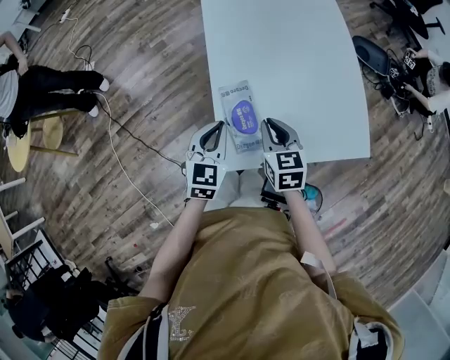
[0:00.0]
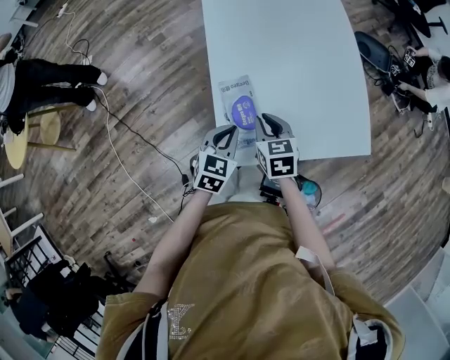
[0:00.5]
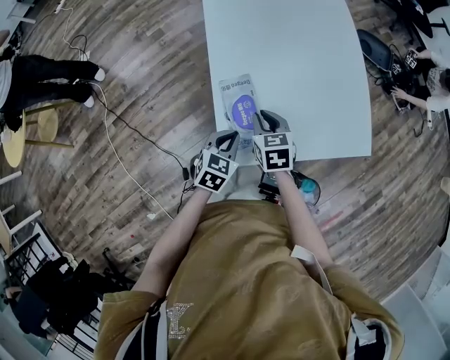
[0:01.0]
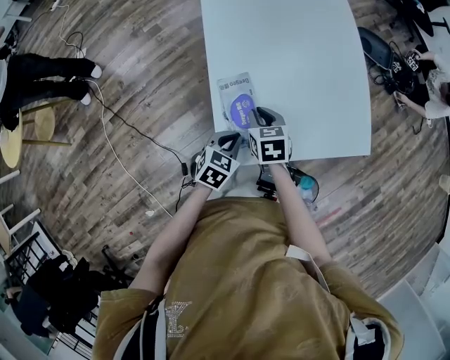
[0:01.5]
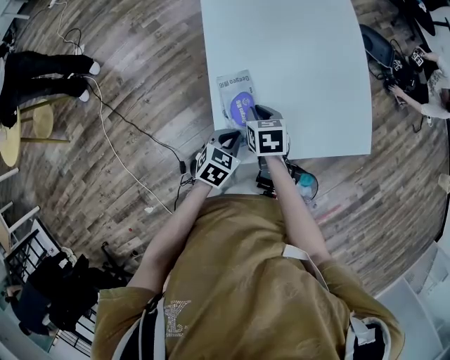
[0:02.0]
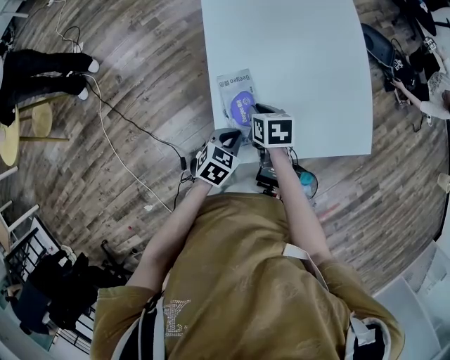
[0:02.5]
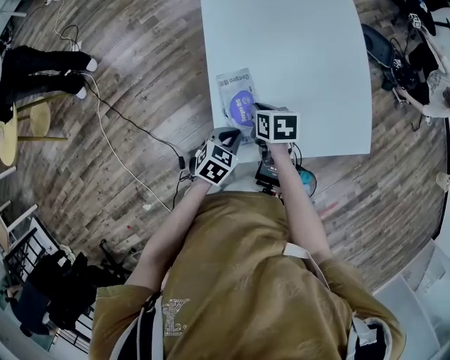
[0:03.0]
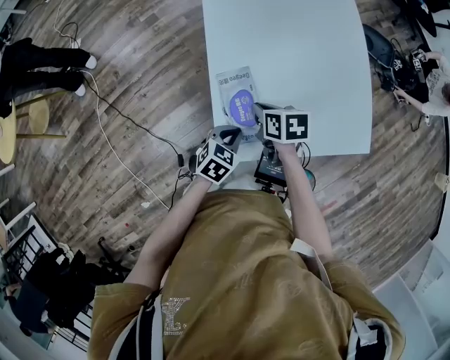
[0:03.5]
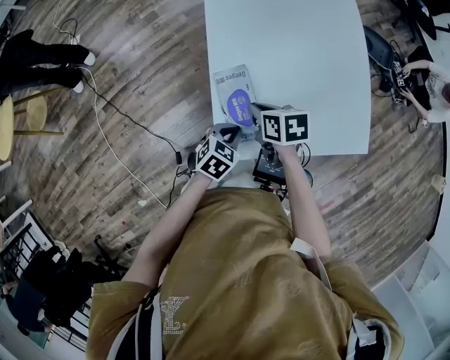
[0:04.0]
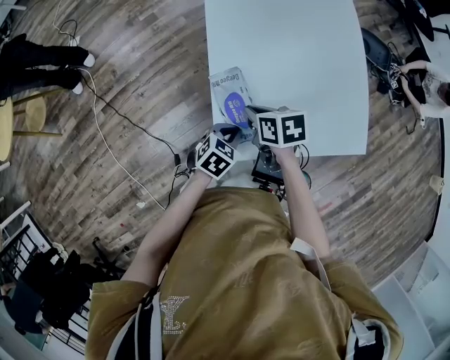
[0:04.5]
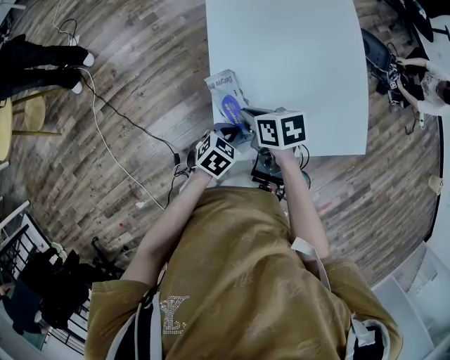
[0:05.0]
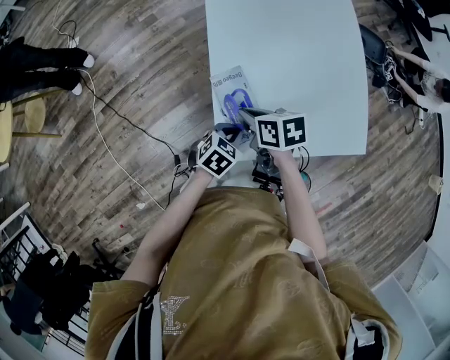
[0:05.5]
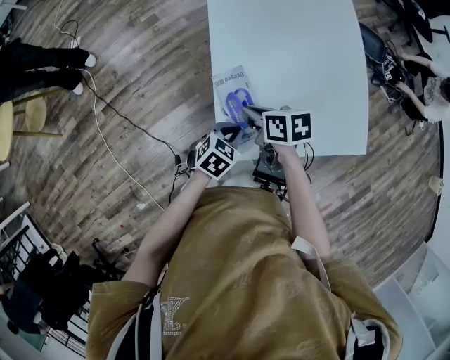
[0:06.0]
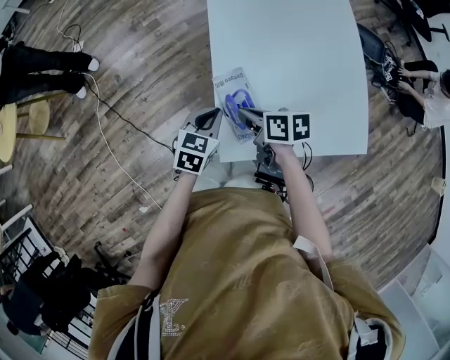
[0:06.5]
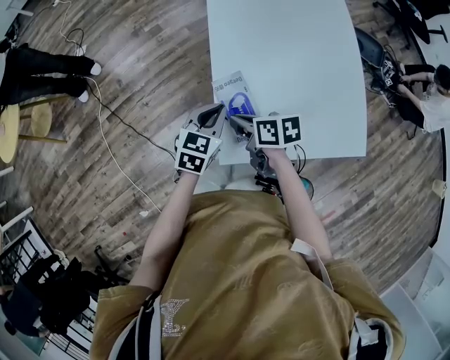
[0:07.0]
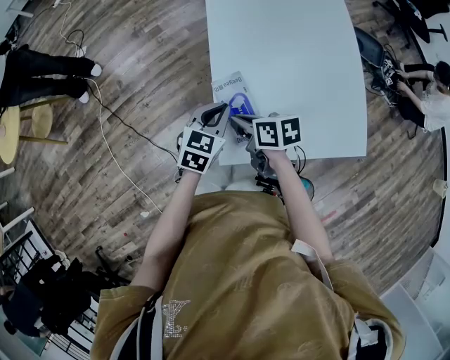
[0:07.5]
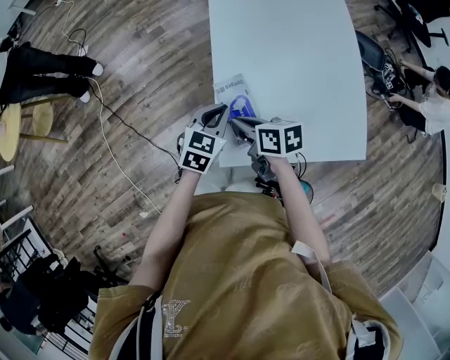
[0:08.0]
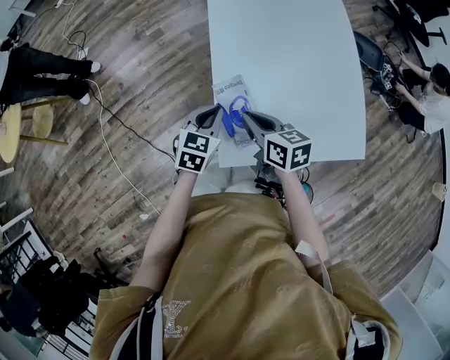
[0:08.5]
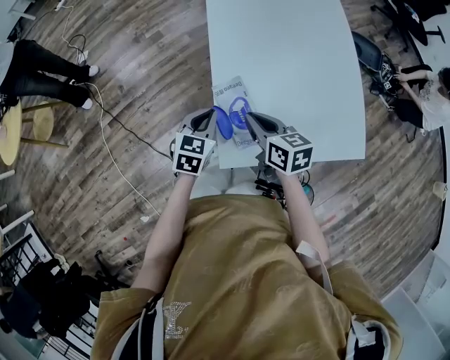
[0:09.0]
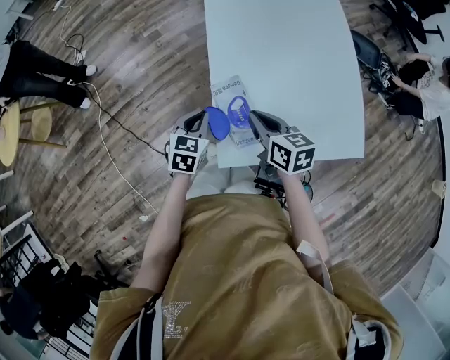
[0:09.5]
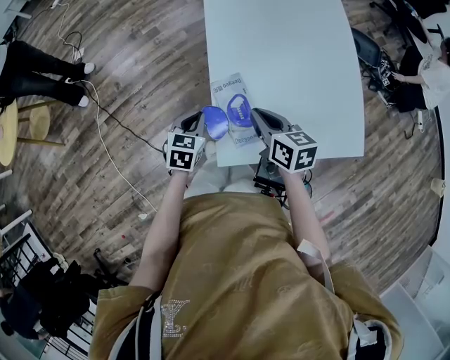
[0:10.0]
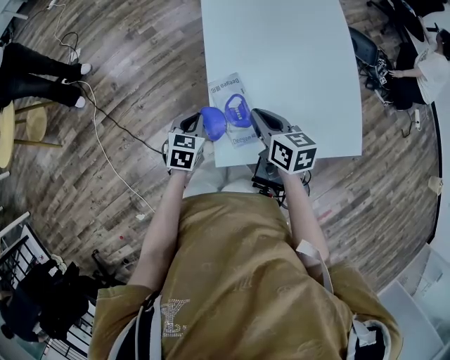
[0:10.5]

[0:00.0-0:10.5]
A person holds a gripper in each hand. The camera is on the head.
0:00.0 to 0:02.0: The left gripper goes approximately 15 cm downward and backward, and changes its angle by some 30 degrees. The right gripper travels downward by approximately 10 cm, and changes its angle by roughly 20 degrees.
0:02.0 to 0:04.0: The grippers stay close to where they were, moving slightly.
0:04.0 to 0:06.5: The left gripper goes roughly 10 cm forward, to the left and upward, and swivels approximately 20 degrees.
0:06.5 to 0:08.5: The right gripper turns by approximately 20 degrees.
0:08.5 to 0:10.5: The left gripper goes about 10 cm downward and to the left.

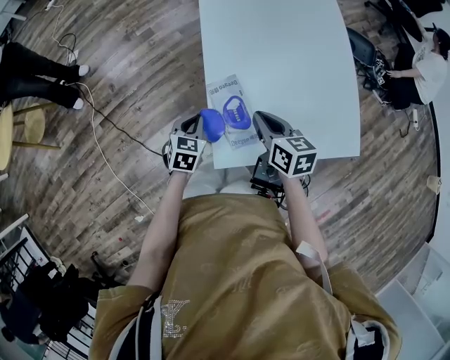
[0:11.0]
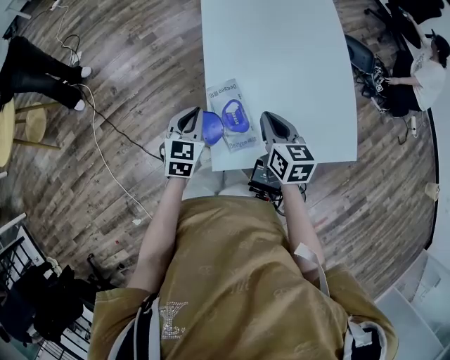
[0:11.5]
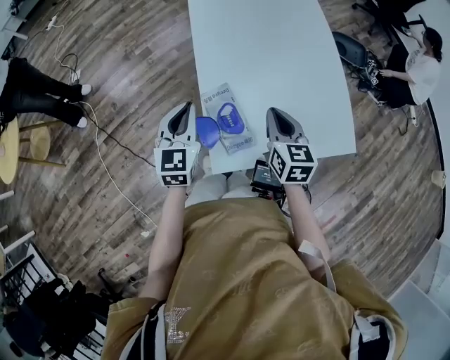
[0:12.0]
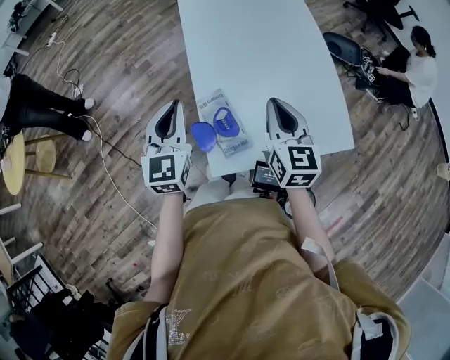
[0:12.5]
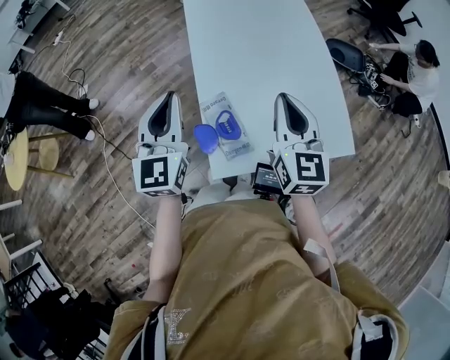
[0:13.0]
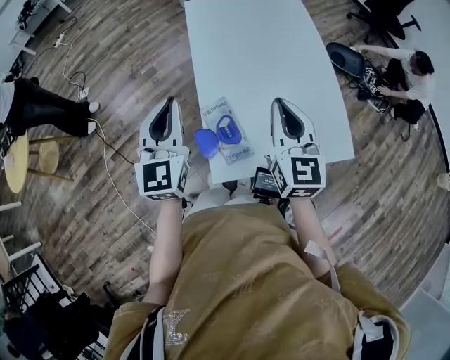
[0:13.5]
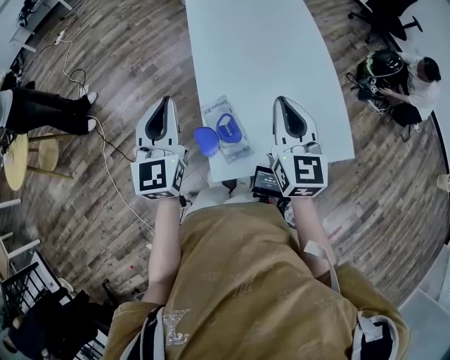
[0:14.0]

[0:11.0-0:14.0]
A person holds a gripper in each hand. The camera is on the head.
0:11.0 to 0:12.5: The right gripper shifts some 15 cm upward and to the right, and swivels approximately 30 degrees; the left gripper travels upward by approximately 25 cm, and tips its fingers upward by about 40 degrees.
0:12.5 to 0:14.0: Both grippers travel together upward, some 5 cm.

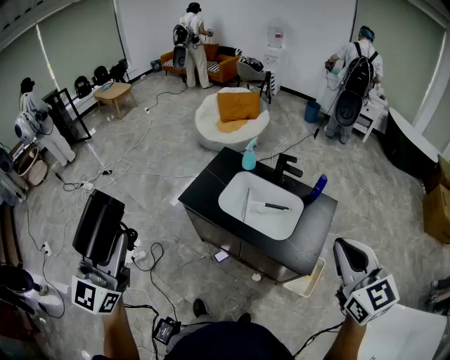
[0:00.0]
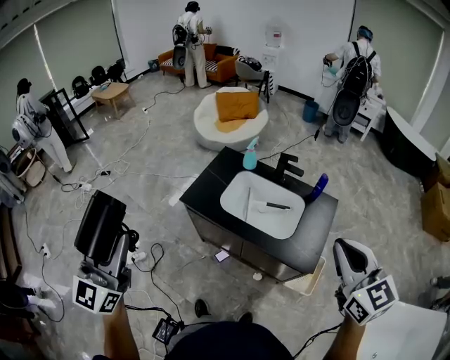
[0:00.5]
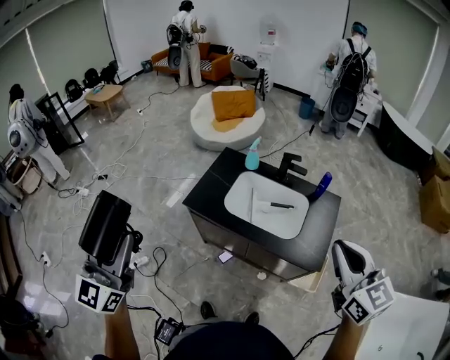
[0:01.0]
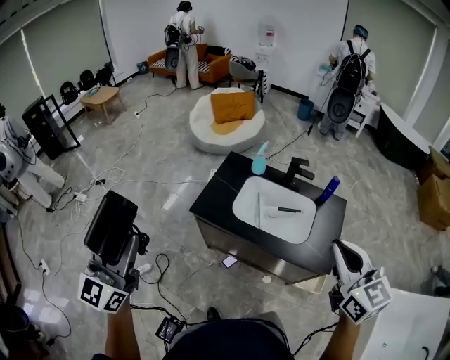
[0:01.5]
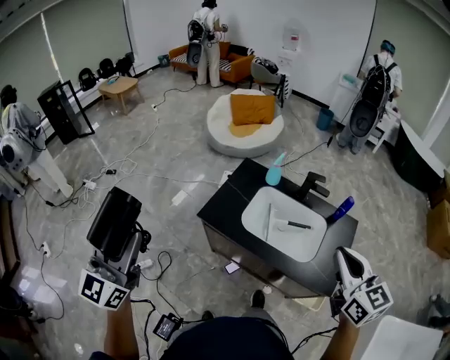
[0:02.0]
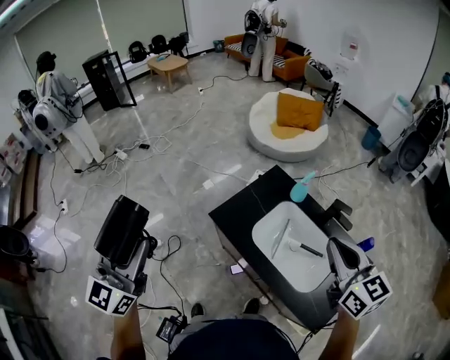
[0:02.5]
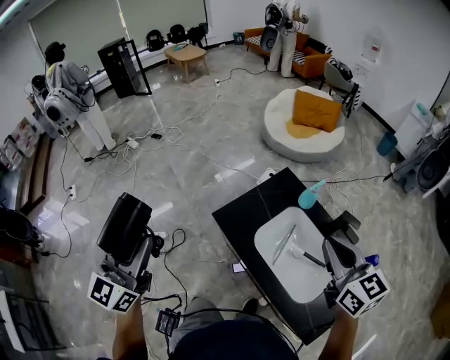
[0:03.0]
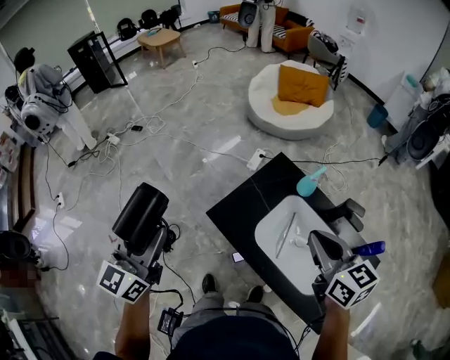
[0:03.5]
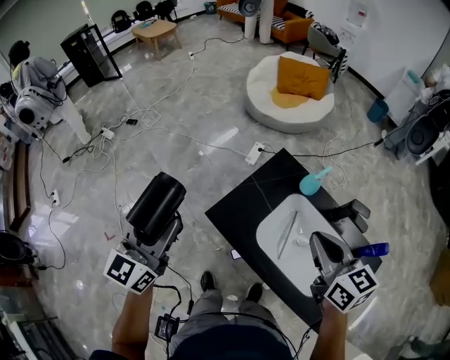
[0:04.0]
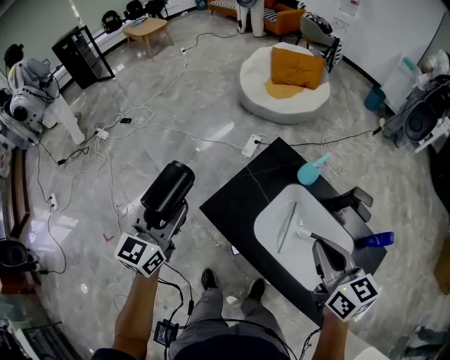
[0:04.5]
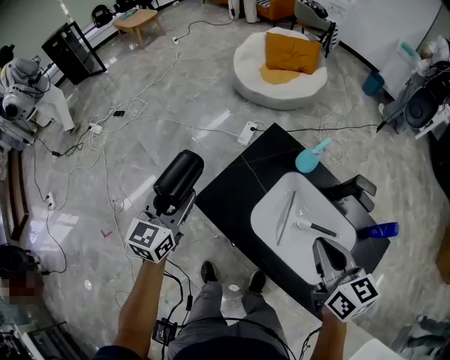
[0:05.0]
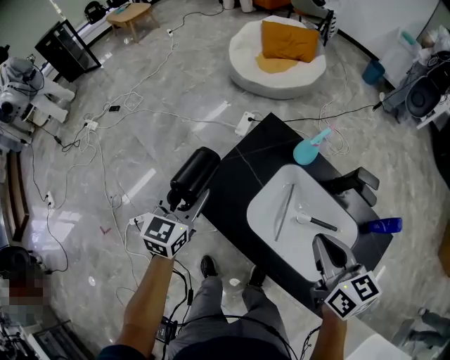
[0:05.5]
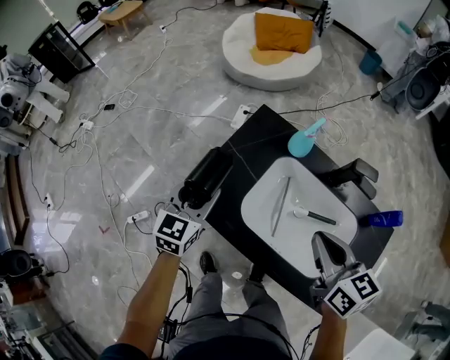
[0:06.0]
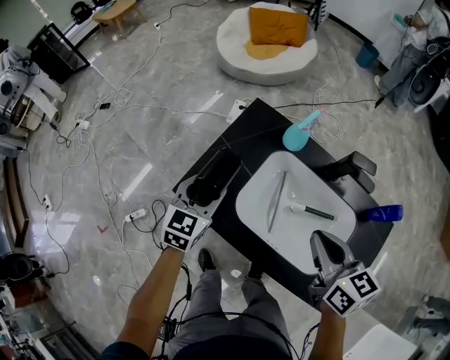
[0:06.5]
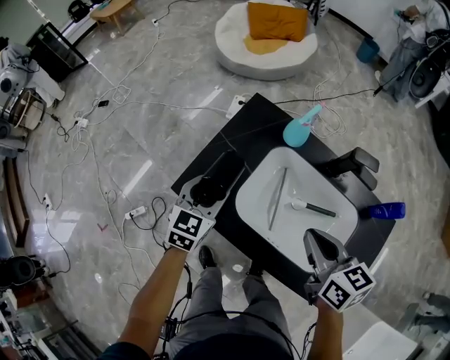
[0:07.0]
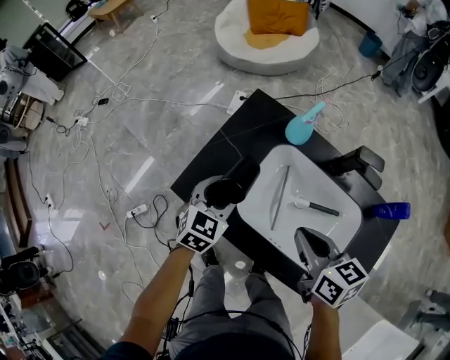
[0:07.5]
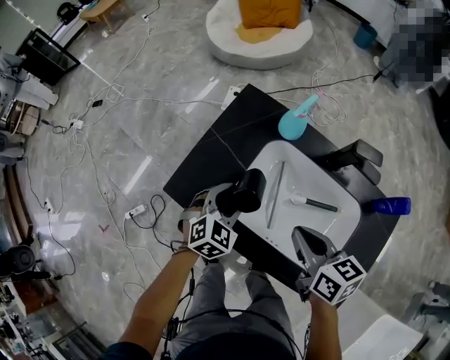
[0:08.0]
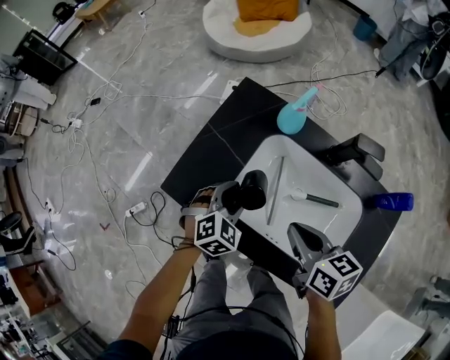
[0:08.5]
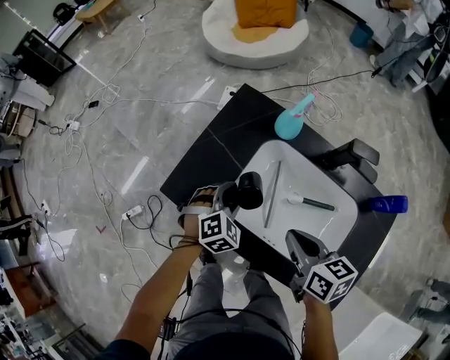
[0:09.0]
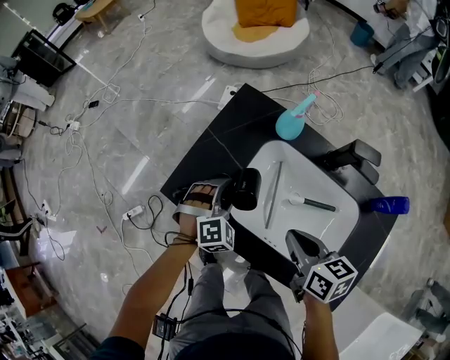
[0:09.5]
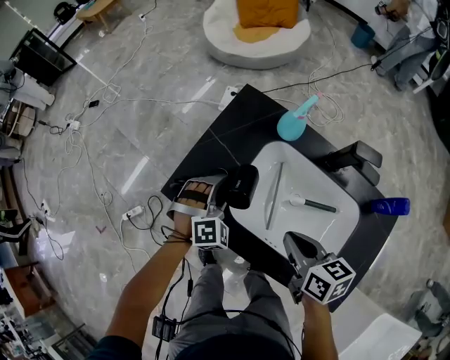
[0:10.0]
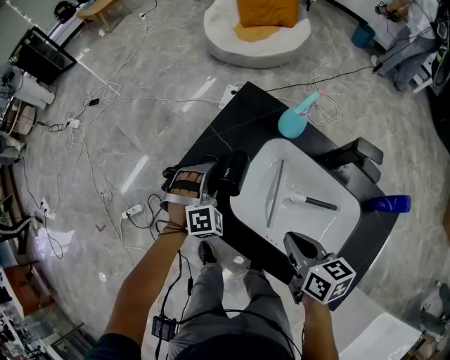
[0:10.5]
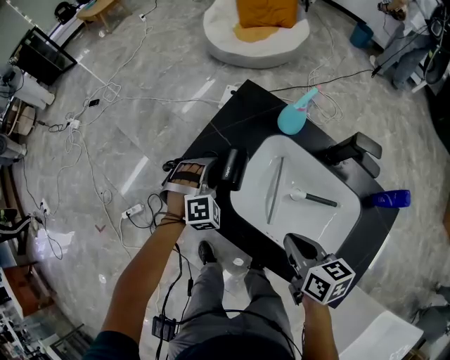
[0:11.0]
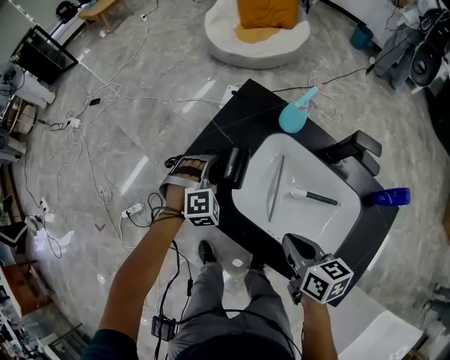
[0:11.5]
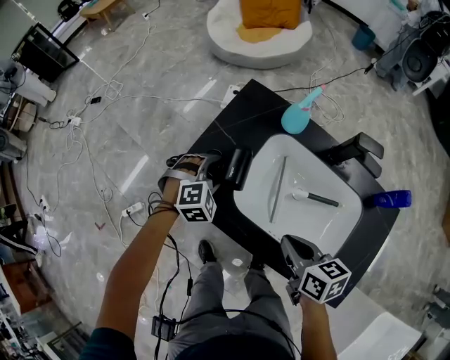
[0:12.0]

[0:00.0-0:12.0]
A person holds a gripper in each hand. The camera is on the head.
0:00.0 to 0:02.0: Both grippers travel together to the left and forward, some 15 cm.
0:02.0 to 0:04.0: The right gripper shifts by approximately 35 cm, and changes its angle by about 30 degrees. The left gripper shifts by approximately 30 cm.
0:04.0 to 0:06.0: The right gripper moves downward and to the right, roughly 15 cm, while the left gripper moves downward and to the right, some 30 cm, and changes its angle by roughly 20 degrees.
0:06.0 to 0:08.0: The right gripper is displaced downward by about 10 cm, while the left gripper is displaced downward and to the right by some 15 cm, and turns by approximately 40 degrees.
0:08.0 to 0:10.0: The left gripper rotates approximately 40 degrees.
0:10.0 to 0:12.0: The grippers make only small movements.

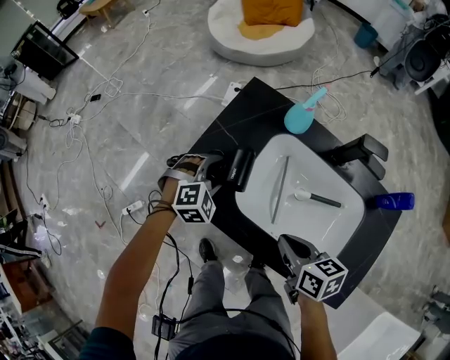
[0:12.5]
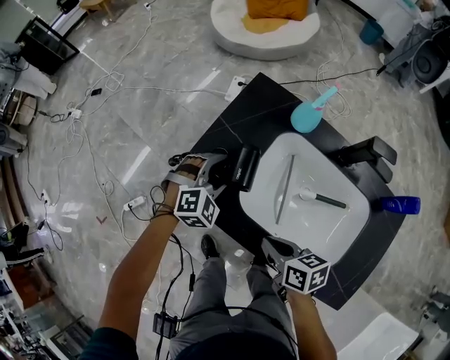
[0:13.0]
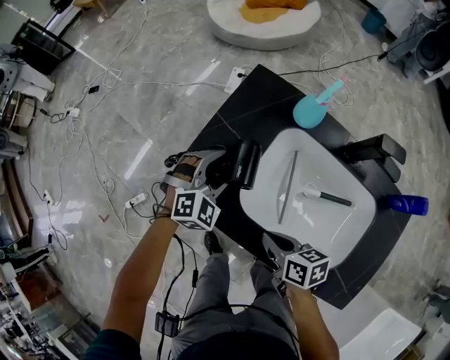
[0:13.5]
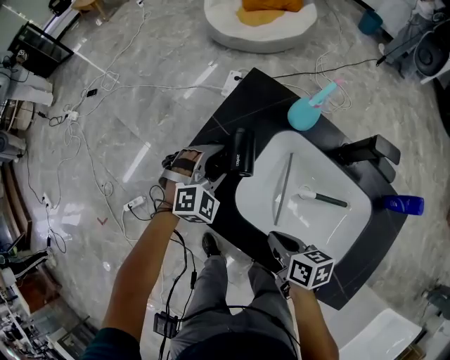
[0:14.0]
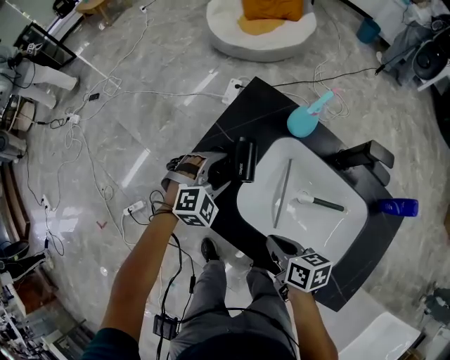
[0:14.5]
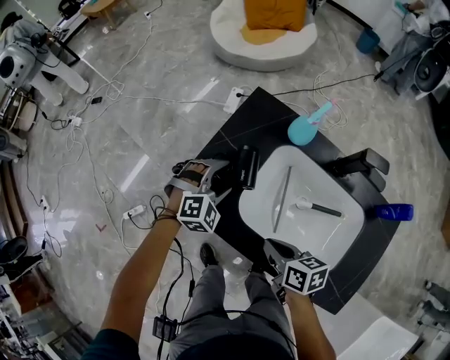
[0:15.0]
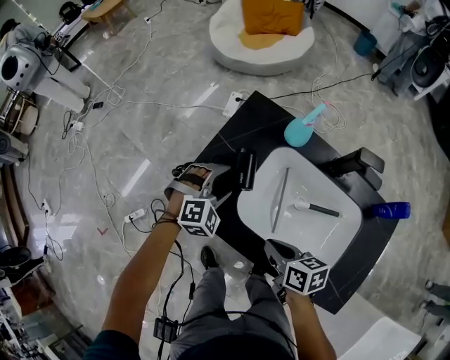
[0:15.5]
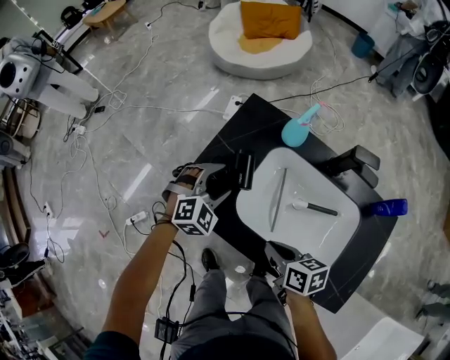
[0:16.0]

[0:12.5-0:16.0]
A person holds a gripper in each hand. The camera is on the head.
0:12.5 to 0:14.5: The right gripper heads downward, covering roughly 5 cm.
0:14.5 to 0:16.0: The left gripper moves upward, about 5 cm.
